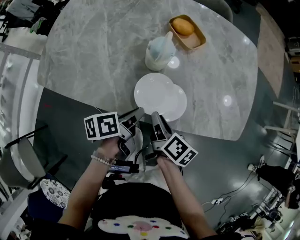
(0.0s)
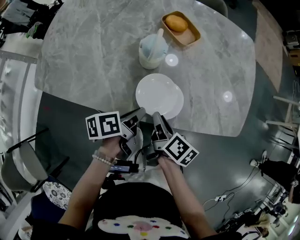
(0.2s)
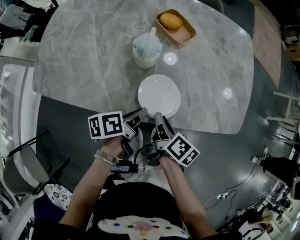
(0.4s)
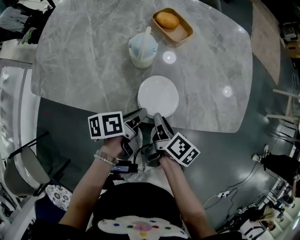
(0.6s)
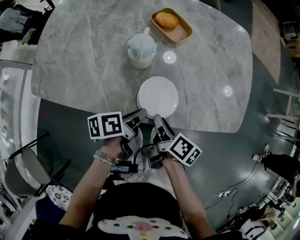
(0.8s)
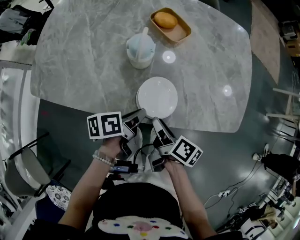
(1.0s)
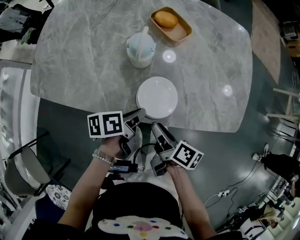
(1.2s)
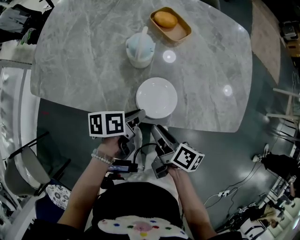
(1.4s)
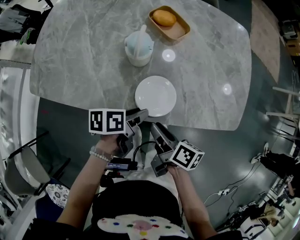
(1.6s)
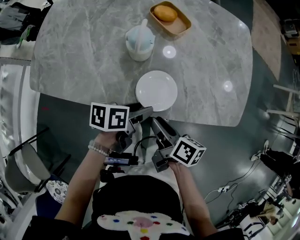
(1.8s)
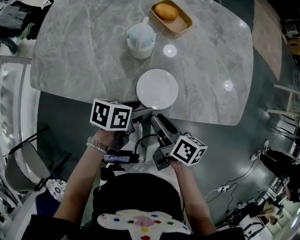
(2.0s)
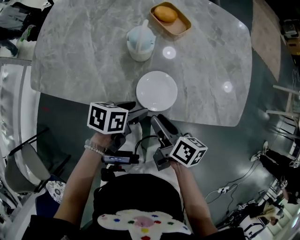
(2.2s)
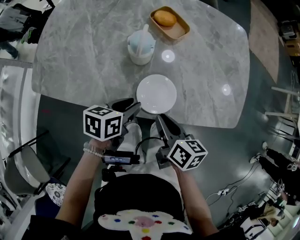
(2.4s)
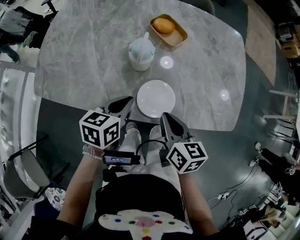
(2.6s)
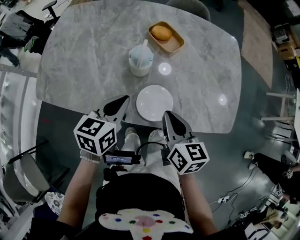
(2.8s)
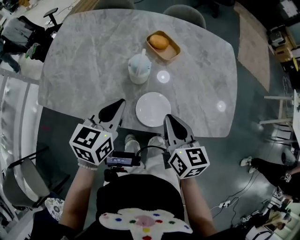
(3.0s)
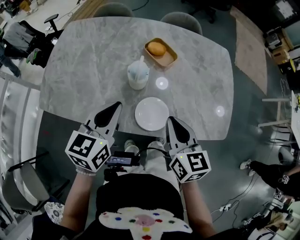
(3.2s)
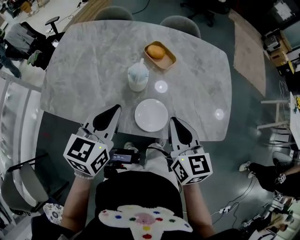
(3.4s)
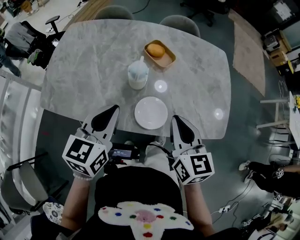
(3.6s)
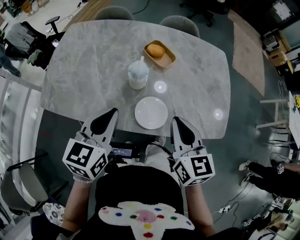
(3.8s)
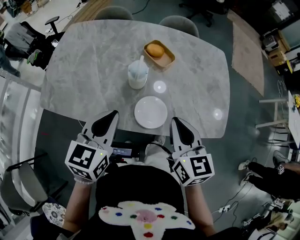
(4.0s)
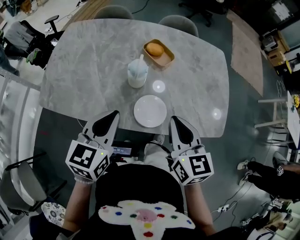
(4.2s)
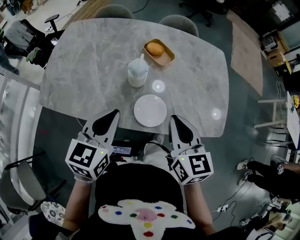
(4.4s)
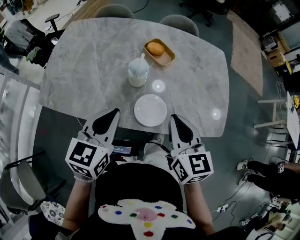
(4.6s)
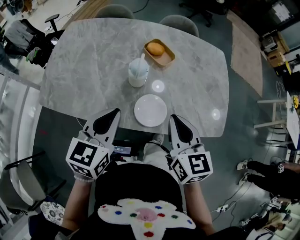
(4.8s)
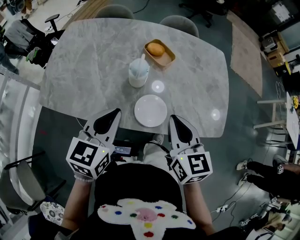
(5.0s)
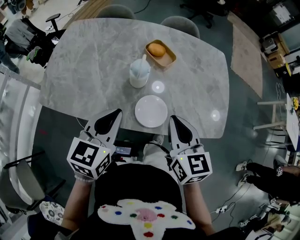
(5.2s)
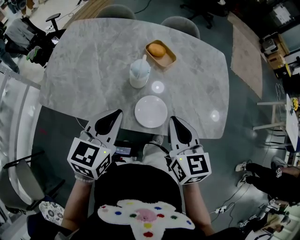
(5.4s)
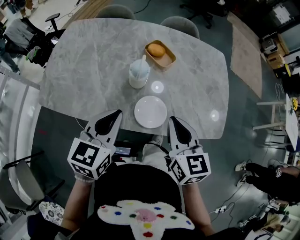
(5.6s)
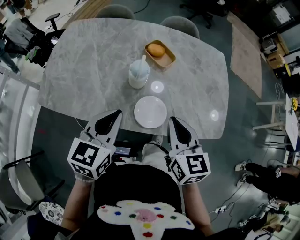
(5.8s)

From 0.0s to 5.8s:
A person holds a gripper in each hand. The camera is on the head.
From 0.0s to 1.4s: The right gripper shifts by approximately 5 cm, while the left gripper travels to the right by about 5 cm.
From 1.4s to 2.8s: The left gripper travels upward, to the left and forward by some 15 cm, rotates around the line of its fingers by roughly 40 degrees, clockwise from behind, and opens and closes again. The right gripper is displaced upward and forward by some 15 cm, rolls counterclockwise, seen from behind, by about 40 degrees, and closes its fingers.
From 2.8s to 4.4s: Both grippers move upward, some 10 cm.
From 4.4s to 5.8s: Both grippers stay put.

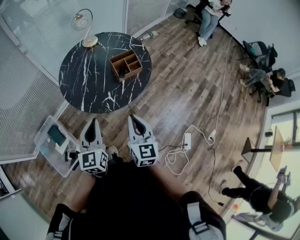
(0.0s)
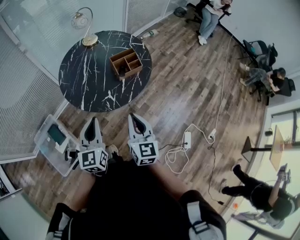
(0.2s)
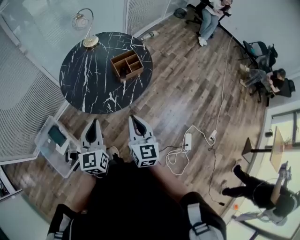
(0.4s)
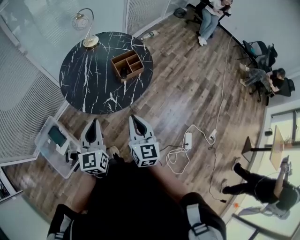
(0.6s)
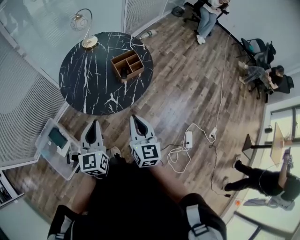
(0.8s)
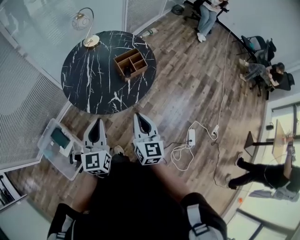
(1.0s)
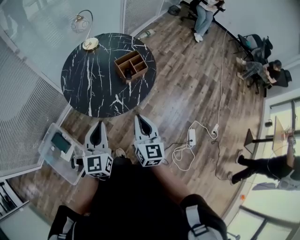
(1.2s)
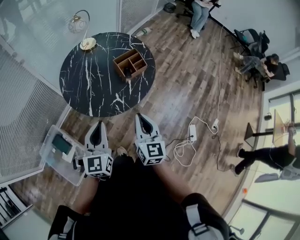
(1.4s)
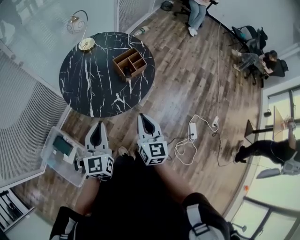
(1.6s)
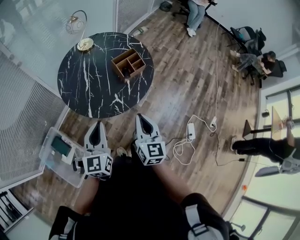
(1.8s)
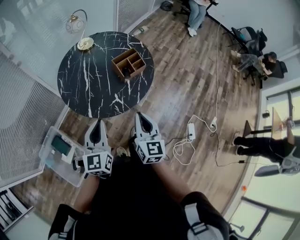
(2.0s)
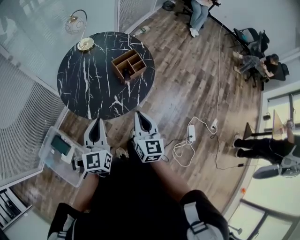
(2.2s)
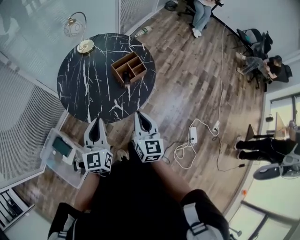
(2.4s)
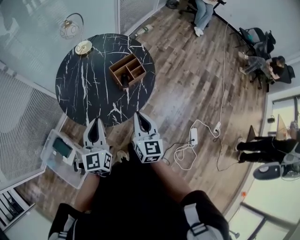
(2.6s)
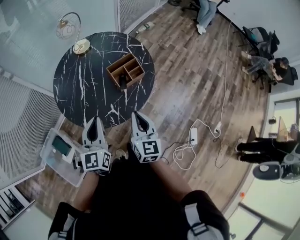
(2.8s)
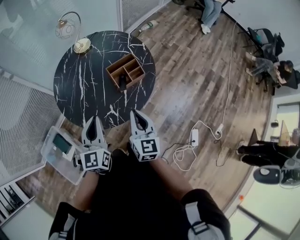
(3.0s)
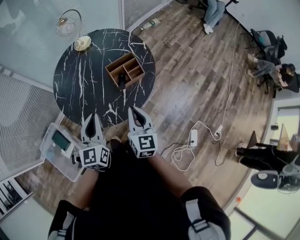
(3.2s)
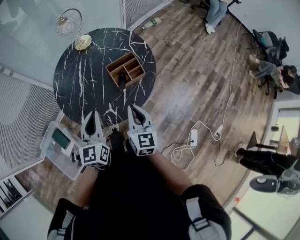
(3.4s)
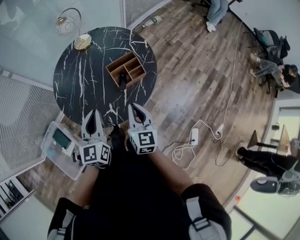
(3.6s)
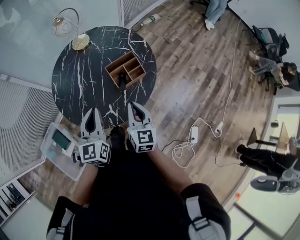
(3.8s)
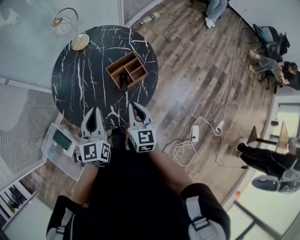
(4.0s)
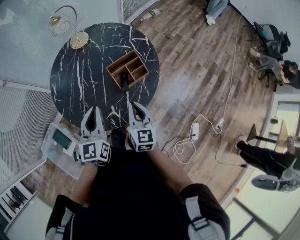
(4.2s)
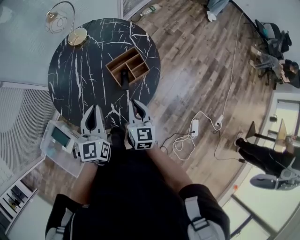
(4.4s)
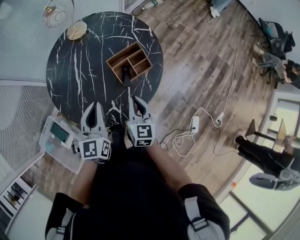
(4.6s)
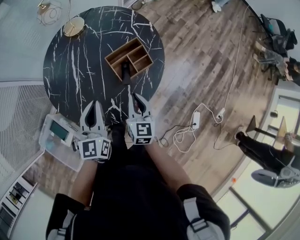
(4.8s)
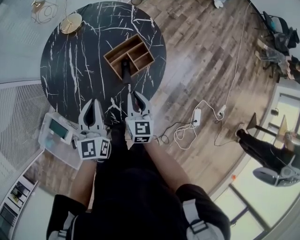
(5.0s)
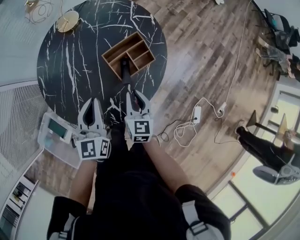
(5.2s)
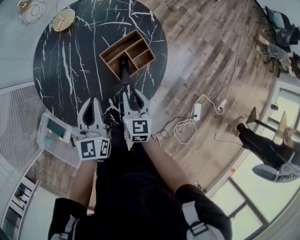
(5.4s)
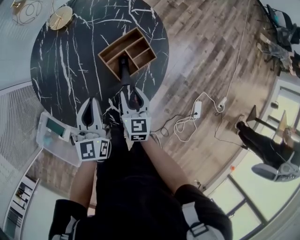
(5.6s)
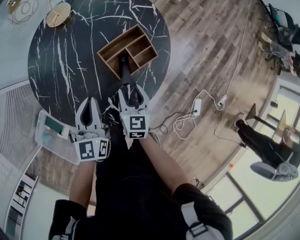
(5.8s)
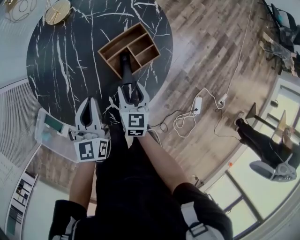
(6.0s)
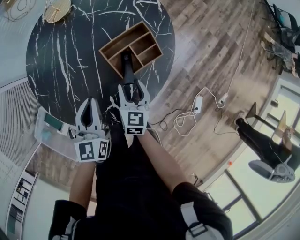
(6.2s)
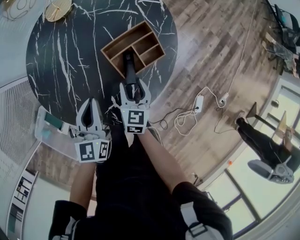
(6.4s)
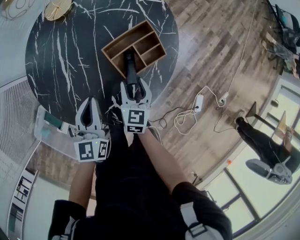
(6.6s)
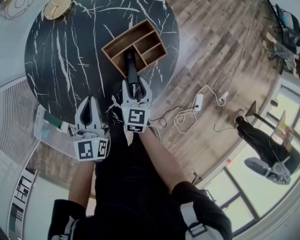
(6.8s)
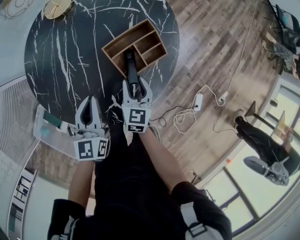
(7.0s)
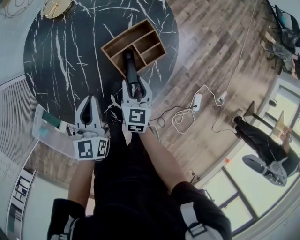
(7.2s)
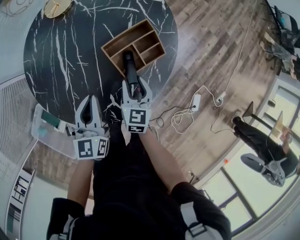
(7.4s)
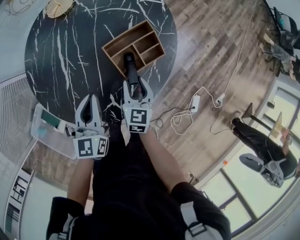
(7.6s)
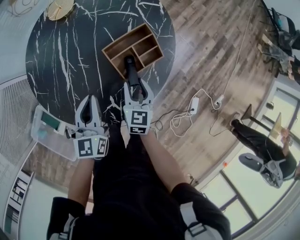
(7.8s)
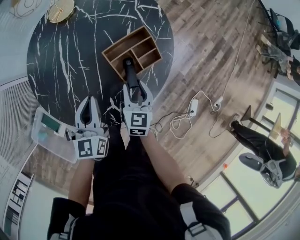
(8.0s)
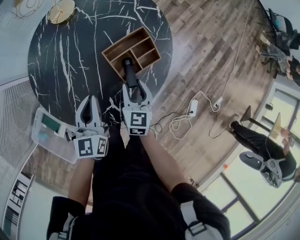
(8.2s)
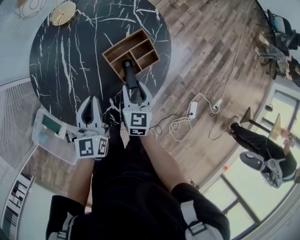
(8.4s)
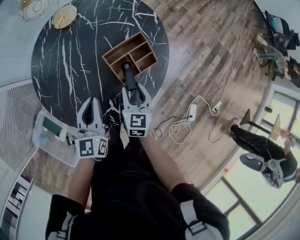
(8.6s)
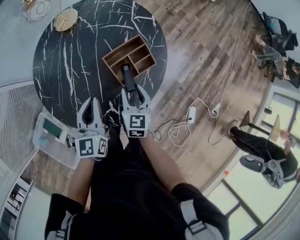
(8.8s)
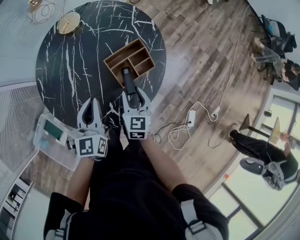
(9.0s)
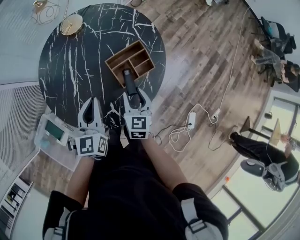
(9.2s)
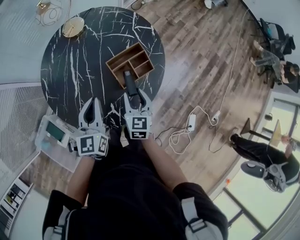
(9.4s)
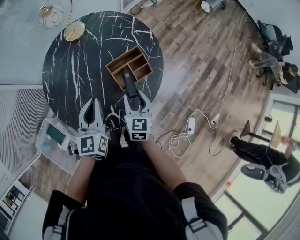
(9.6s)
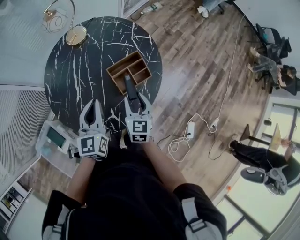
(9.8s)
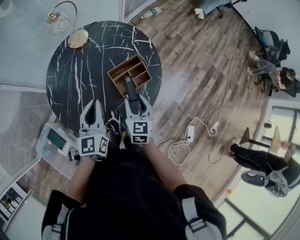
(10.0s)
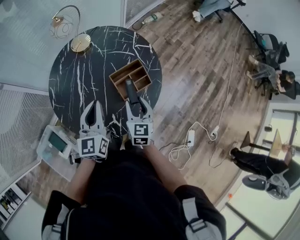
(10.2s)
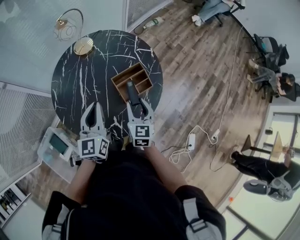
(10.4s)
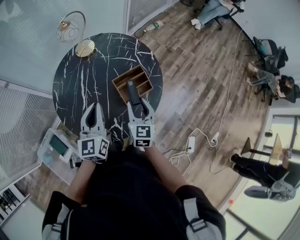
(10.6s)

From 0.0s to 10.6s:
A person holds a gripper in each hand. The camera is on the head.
From 0.0s to 1.6s: Both grippers travel together to the left, approximately 5 cm.
From 1.6s to 3.0s: The left gripper moves forward and to the right, approximately 15 cm. The right gripper heads forward, covering roughly 15 cm.
From 3.0s to 4.6s: The left gripper shifts some 10 cm forward. Meanwhile the right gripper heads forward and downward, covering some 15 cm.
From 4.6s to 6.0s: The two grippers go approximately 15 cm downward and forward. The right gripper opens up.
From 6.0s to 7.6s: There are only small adjustments of the grippers.
From 7.6s to 9.0s: Both grippers travel together upward, about 5 cm.
From 9.0s to 10.6s: Both grippers travel together upward, approximately 10 cm.

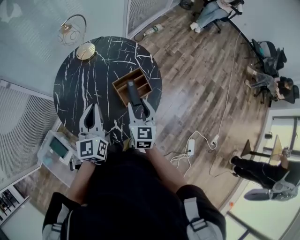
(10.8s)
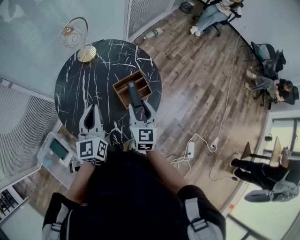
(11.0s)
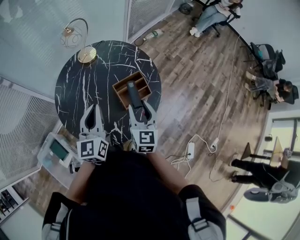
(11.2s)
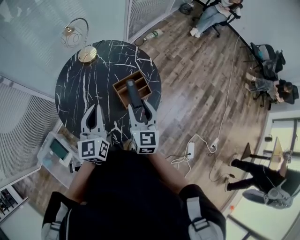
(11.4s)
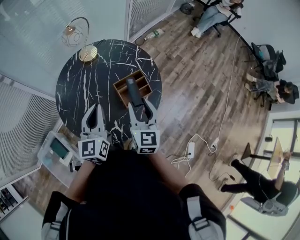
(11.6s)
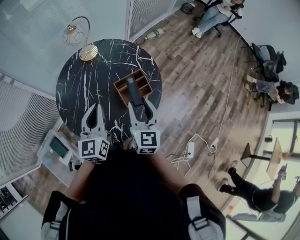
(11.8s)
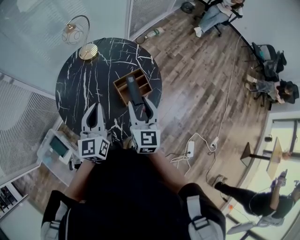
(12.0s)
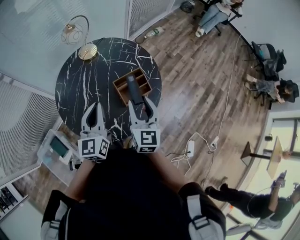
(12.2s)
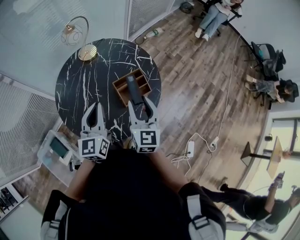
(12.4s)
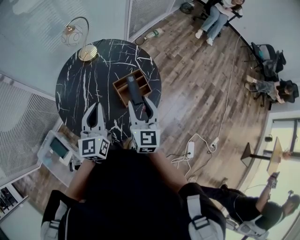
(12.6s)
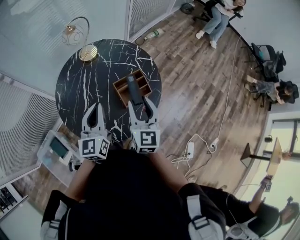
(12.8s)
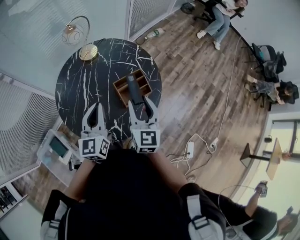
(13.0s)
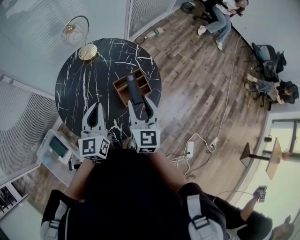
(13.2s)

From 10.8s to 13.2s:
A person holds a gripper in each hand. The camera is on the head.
From 10.8s to 12.0s: The right gripper shifts roughly 10 cm upward.
From 12.0s to 13.2s: Both grippers stay about where they are.

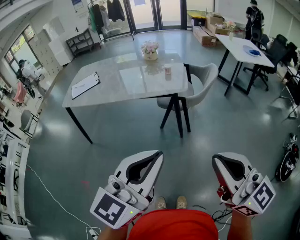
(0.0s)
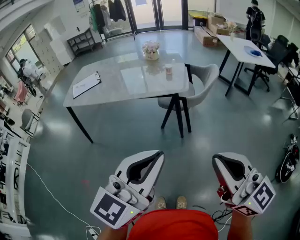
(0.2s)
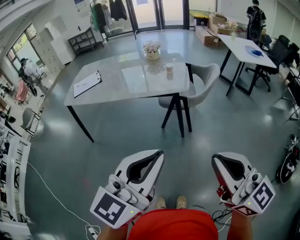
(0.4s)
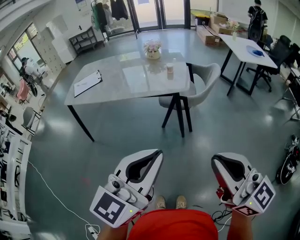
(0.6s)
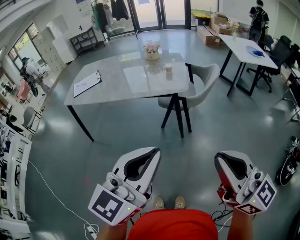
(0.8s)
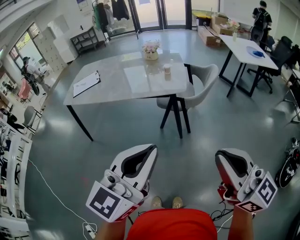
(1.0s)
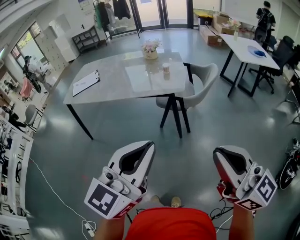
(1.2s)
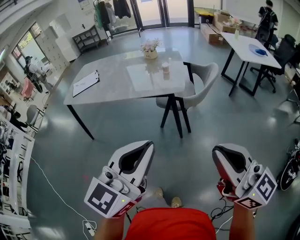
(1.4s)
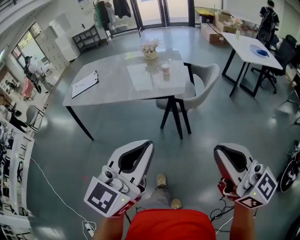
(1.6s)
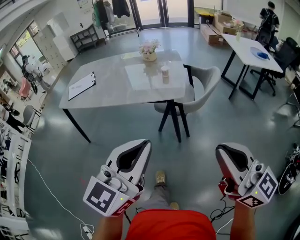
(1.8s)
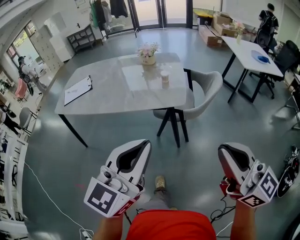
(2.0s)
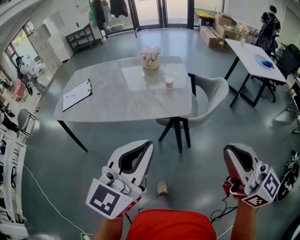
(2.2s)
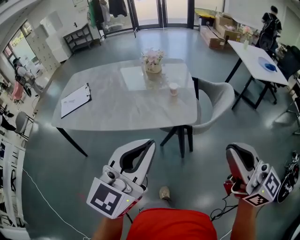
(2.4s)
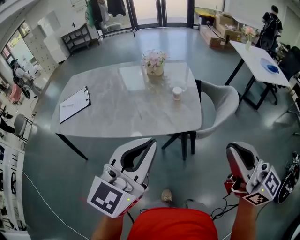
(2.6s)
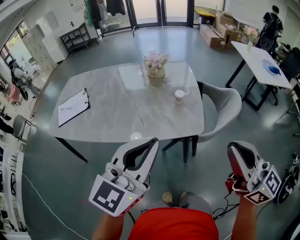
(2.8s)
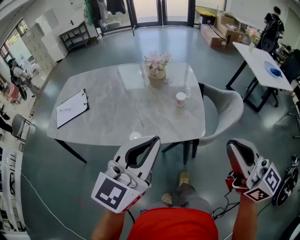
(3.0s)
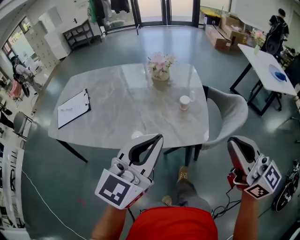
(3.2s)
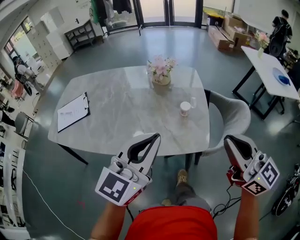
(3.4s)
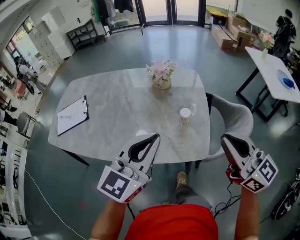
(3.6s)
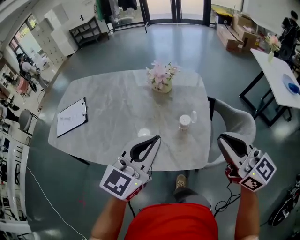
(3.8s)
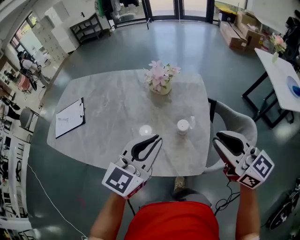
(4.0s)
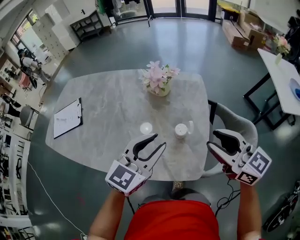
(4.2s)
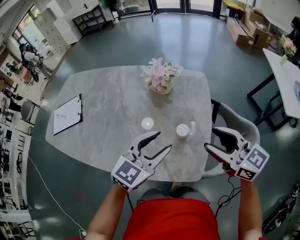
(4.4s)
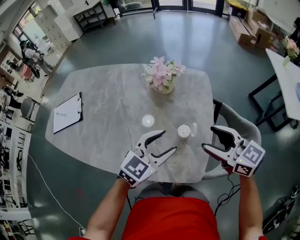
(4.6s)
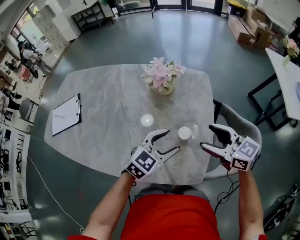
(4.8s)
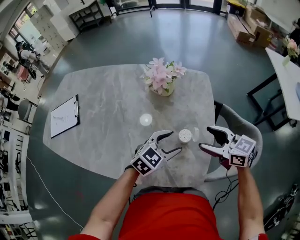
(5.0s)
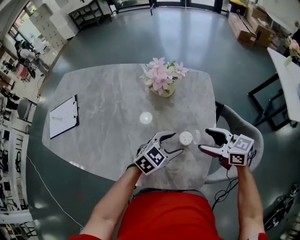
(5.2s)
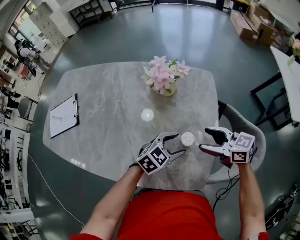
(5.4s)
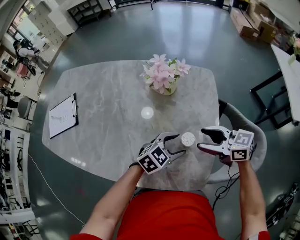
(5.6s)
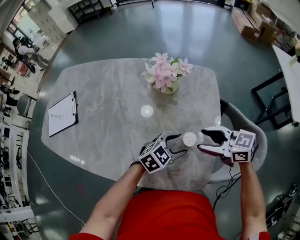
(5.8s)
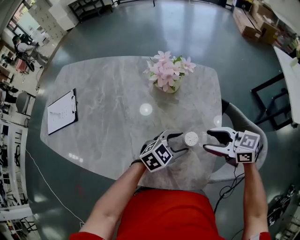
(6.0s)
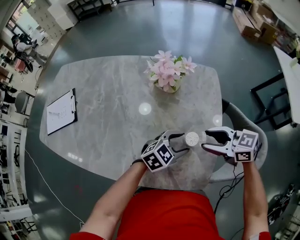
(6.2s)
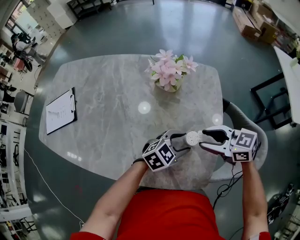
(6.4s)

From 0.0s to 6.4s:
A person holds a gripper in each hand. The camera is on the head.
From 0.0s to 1.6s: The left gripper travels forward and to the right by about 10 cm; the right gripper travels to the right and forward by about 10 cm.
From 1.6s to 3.2s: Both grippers travel together forward, about 40 cm.
From 3.2s to 4.8s: The grippers both shift forward and downward by some 35 cm. The left gripper rotates approximately 30 degrees, and opens its fingers; the right gripper swivels approximately 30 degrees, and opens.
From 4.8s to 6.4s: Both grippers move downward, some 5 cm. The right gripper turns by some 20 degrees, and closes its fingers.
